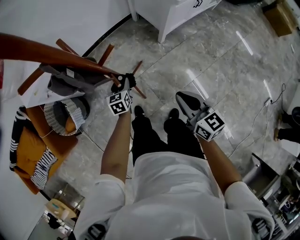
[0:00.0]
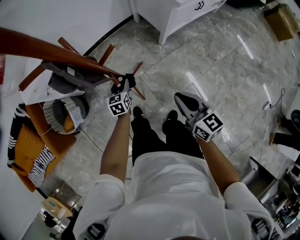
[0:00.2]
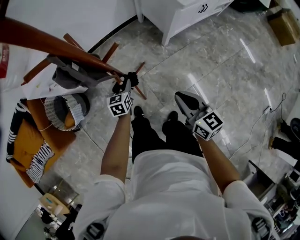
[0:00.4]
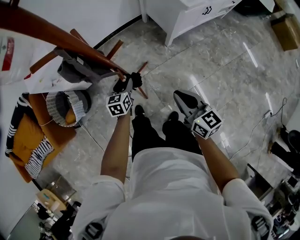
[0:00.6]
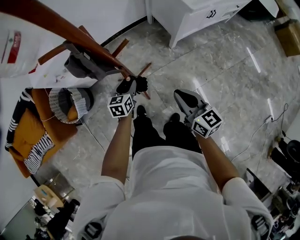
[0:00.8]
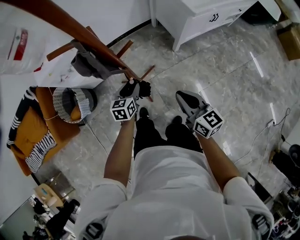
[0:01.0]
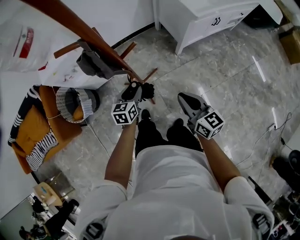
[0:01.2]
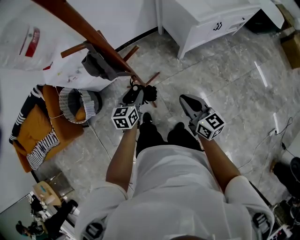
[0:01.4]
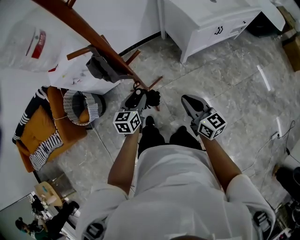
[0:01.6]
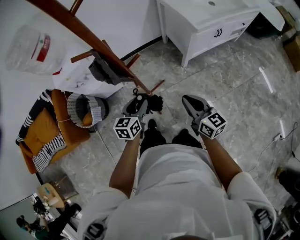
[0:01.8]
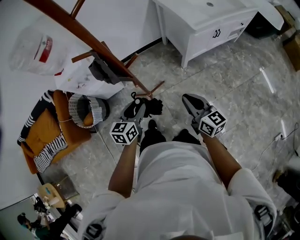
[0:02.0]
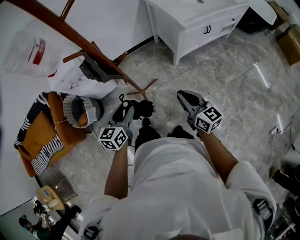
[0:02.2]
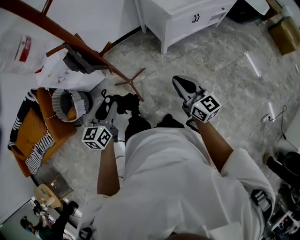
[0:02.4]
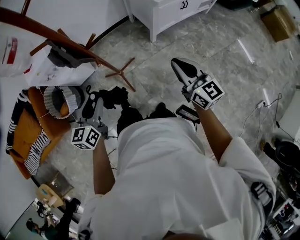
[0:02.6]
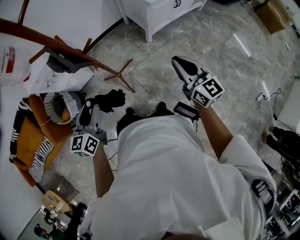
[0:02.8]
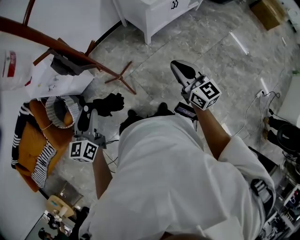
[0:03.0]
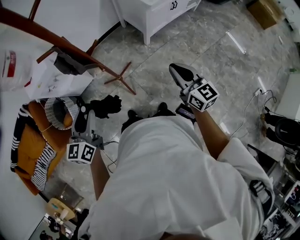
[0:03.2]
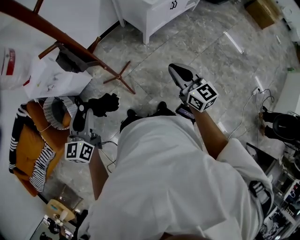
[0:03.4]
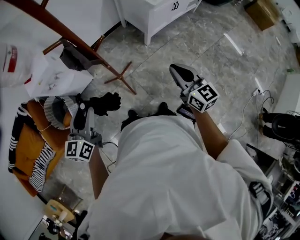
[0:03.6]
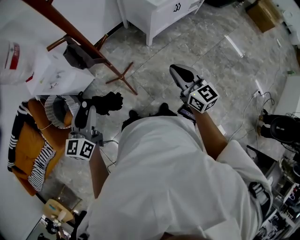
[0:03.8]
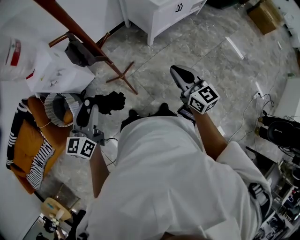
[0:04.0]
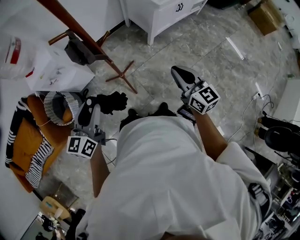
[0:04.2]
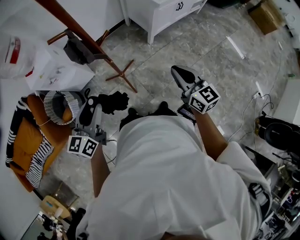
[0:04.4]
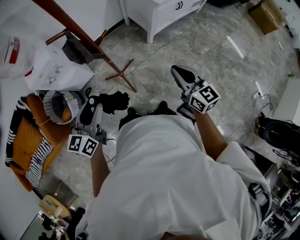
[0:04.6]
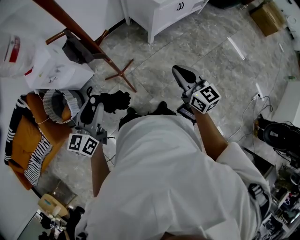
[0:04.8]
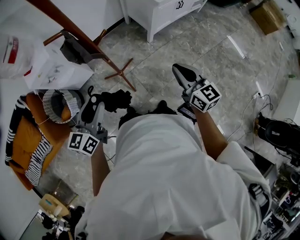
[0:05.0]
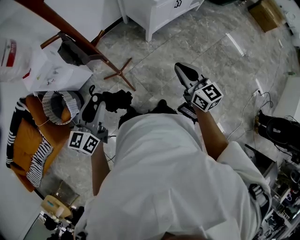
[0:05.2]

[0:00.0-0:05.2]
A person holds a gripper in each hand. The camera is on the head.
0:00.0 to 0:01.8: The right gripper heads upward, covering roughly 5 cm. The left gripper goes about 20 cm upward and backward.
0:01.8 to 0:03.4: The right gripper is displaced upward, to the right and backward by roughly 10 cm. Meanwhile the left gripper travels upward, to the left and backward by approximately 20 cm.
0:03.4 to 0:05.2: There are only small adjustments of the grippers.

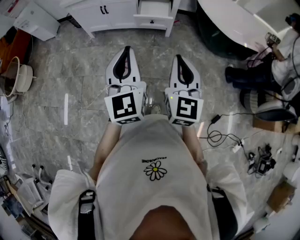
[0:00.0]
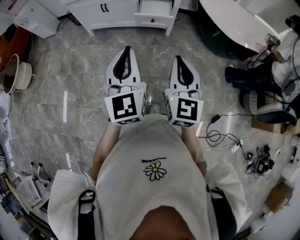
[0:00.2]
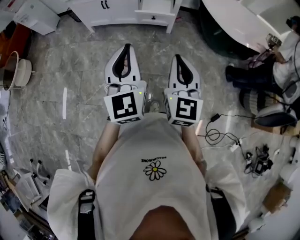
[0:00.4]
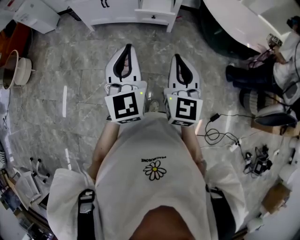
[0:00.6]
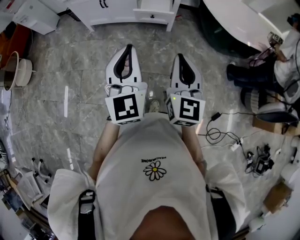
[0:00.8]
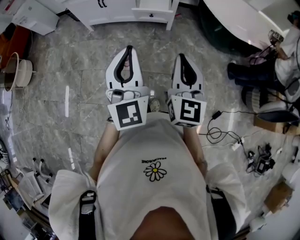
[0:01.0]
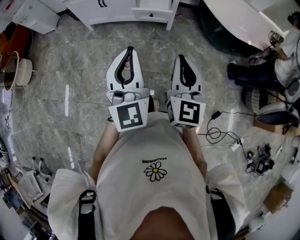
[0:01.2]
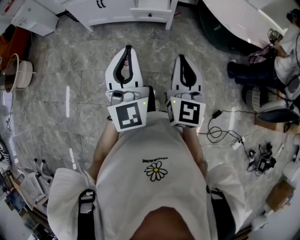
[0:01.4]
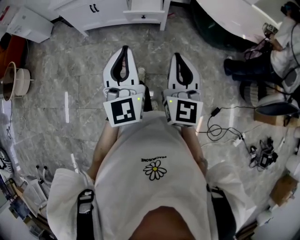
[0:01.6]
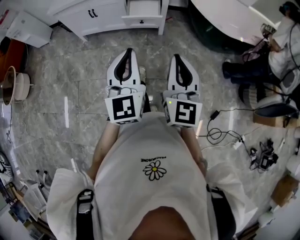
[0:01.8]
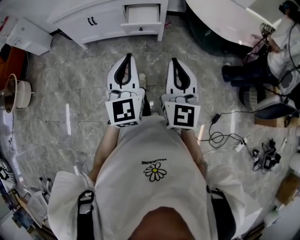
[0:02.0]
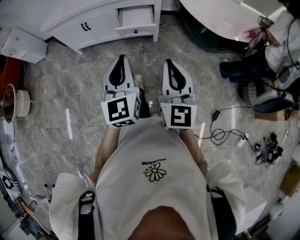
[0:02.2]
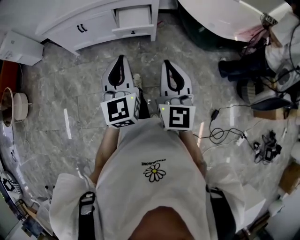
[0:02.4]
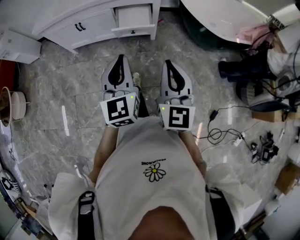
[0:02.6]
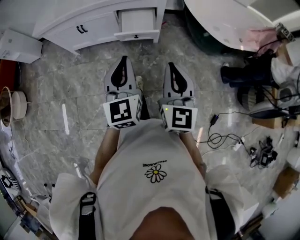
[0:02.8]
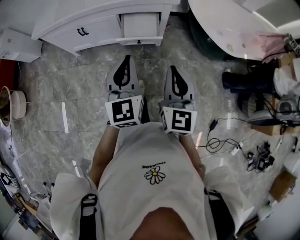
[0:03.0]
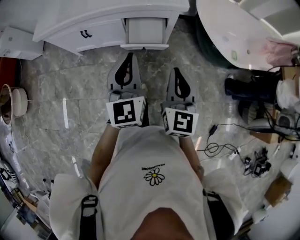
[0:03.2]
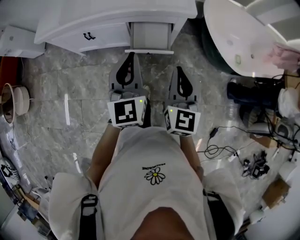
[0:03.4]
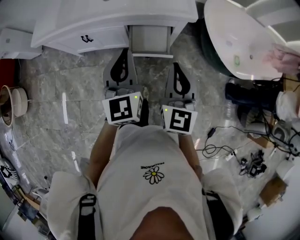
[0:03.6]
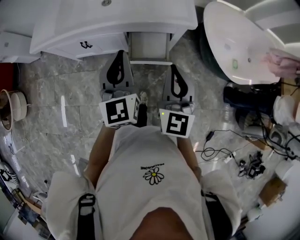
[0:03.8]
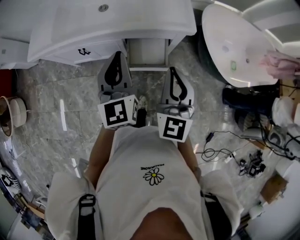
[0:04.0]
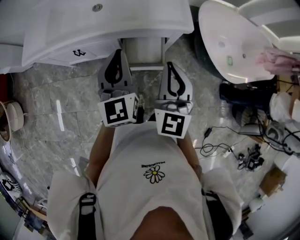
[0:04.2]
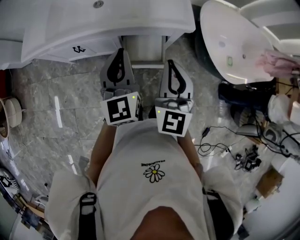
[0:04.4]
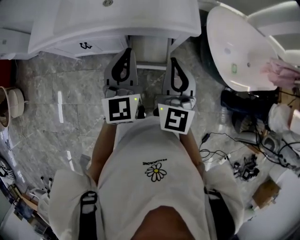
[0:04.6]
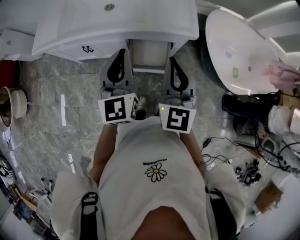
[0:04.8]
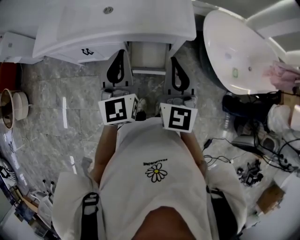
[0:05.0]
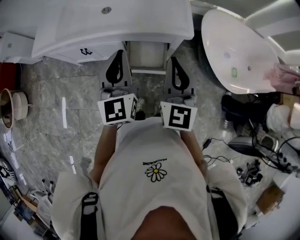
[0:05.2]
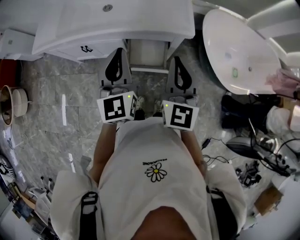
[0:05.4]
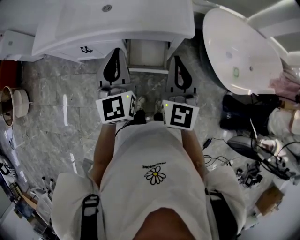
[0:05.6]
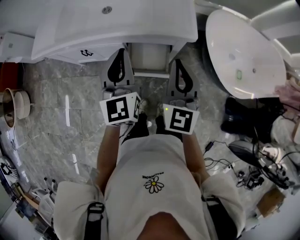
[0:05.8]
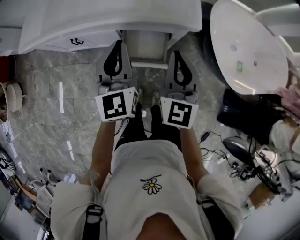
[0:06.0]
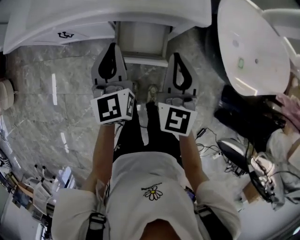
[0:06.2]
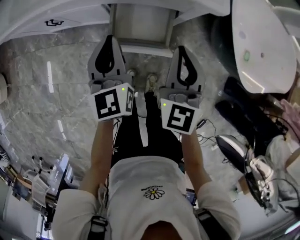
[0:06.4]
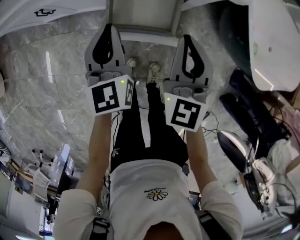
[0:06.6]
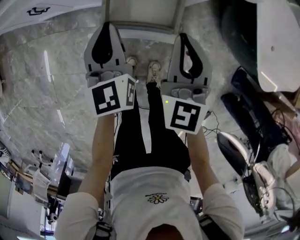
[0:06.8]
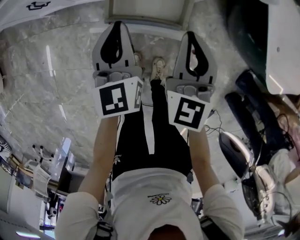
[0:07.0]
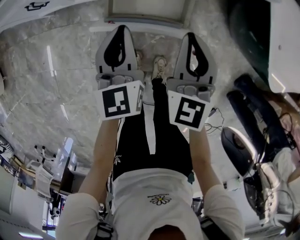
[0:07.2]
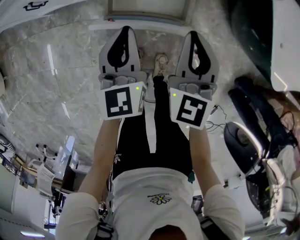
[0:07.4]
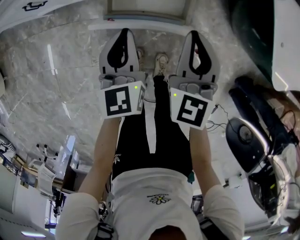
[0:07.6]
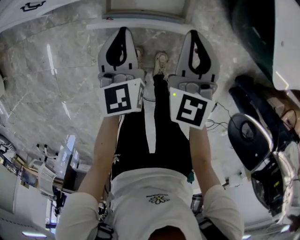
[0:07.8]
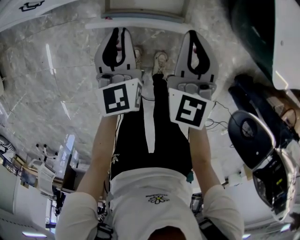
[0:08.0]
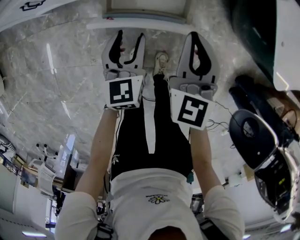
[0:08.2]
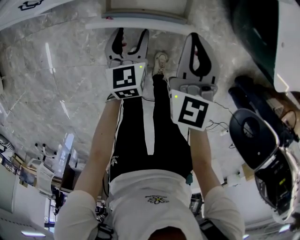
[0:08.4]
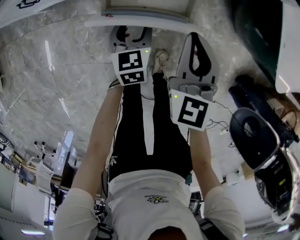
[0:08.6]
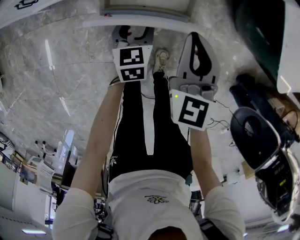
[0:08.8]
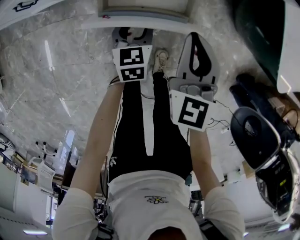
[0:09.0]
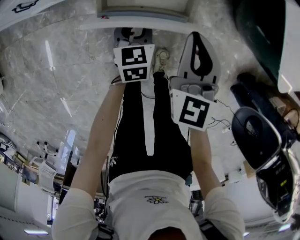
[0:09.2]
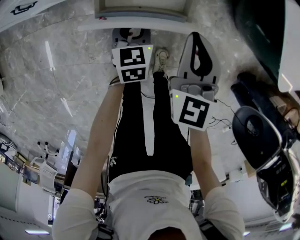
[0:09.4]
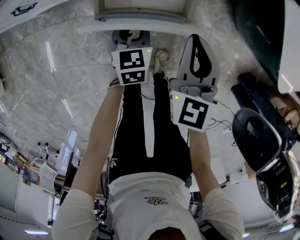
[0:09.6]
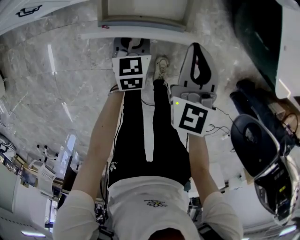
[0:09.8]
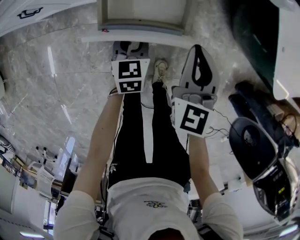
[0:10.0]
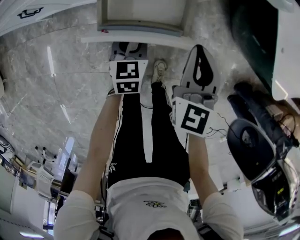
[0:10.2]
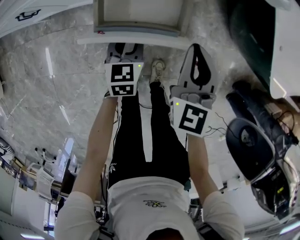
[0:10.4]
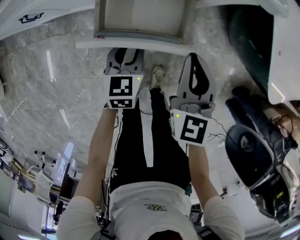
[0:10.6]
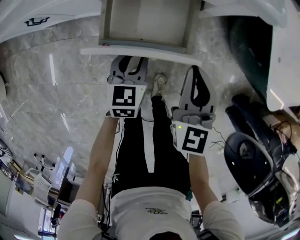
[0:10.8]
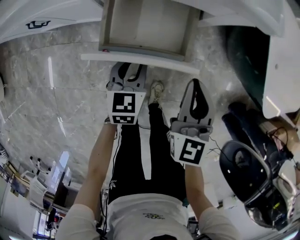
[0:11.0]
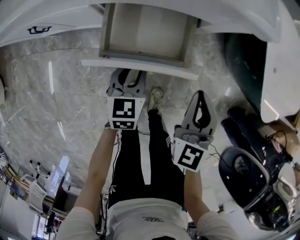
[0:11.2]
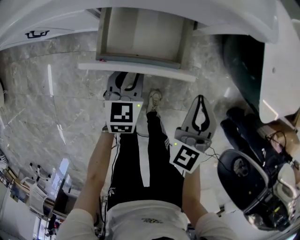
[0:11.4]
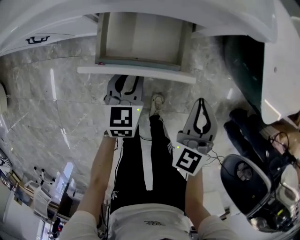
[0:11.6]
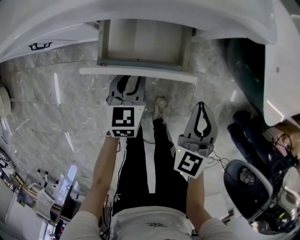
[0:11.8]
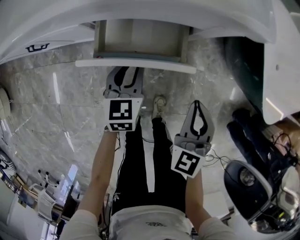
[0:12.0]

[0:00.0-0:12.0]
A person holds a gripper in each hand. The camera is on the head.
0:00.0 to 0:01.6: The left gripper heads to the right, covering roughly 5 cm.
0:01.6 to 0:03.0: Both grippers travel together forward, roughly 20 cm.
0:03.0 to 0:04.4: The grippers both shift forward by approximately 25 cm.
0:04.4 to 0:06.0: The left gripper changes place by about 5 cm, while the right gripper is displaced downward and forward by about 10 cm.
0:06.0 to 0:07.6: Both grippers move downward, roughly 30 cm. The left gripper turns by roughly 20 degrees.
0:07.6 to 0:09.0: The left gripper goes roughly 15 cm downward, and opens its fingers.
0:09.0 to 0:10.4: The left gripper closes its fingers.
0:10.4 to 0:12.0: The left gripper shifts approximately 5 cm forward.

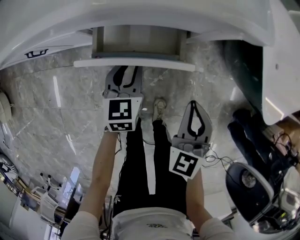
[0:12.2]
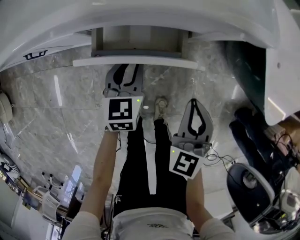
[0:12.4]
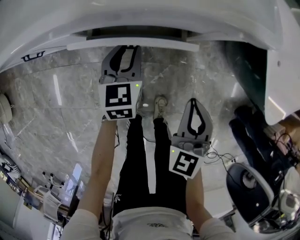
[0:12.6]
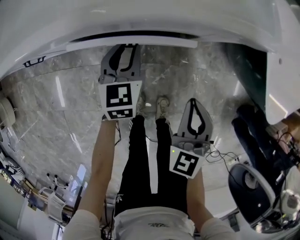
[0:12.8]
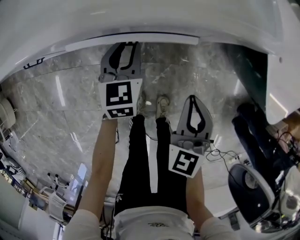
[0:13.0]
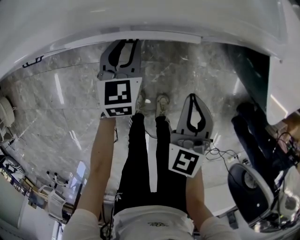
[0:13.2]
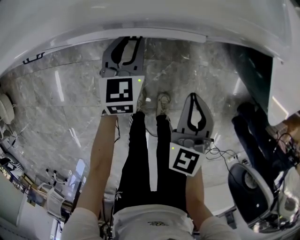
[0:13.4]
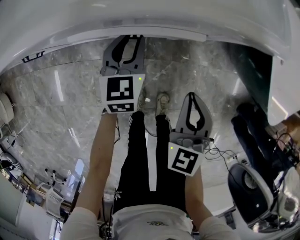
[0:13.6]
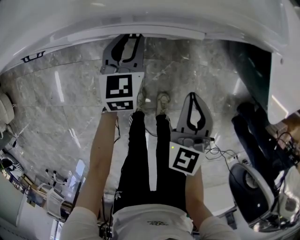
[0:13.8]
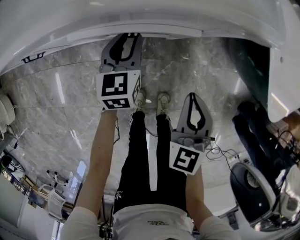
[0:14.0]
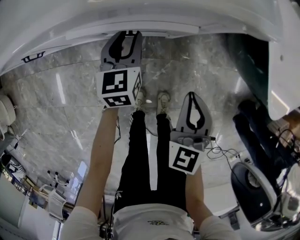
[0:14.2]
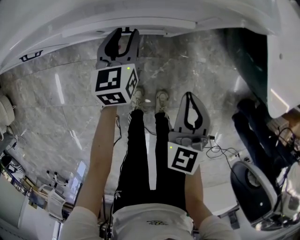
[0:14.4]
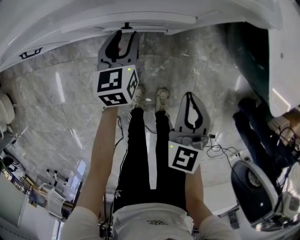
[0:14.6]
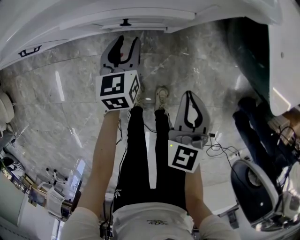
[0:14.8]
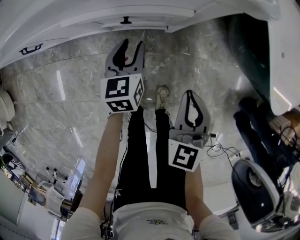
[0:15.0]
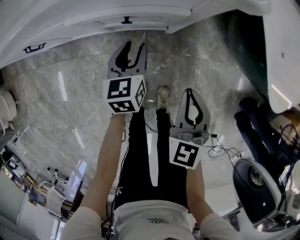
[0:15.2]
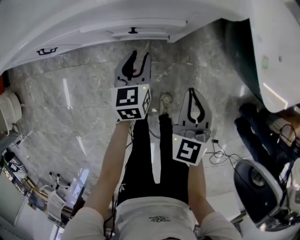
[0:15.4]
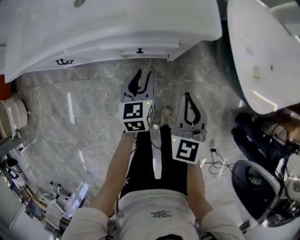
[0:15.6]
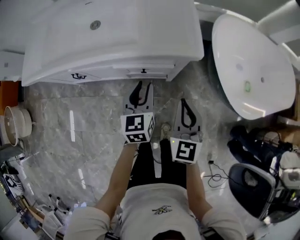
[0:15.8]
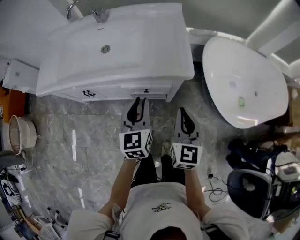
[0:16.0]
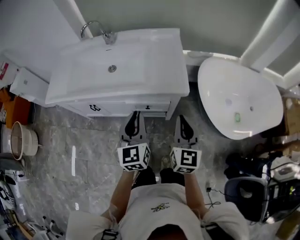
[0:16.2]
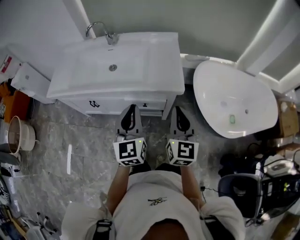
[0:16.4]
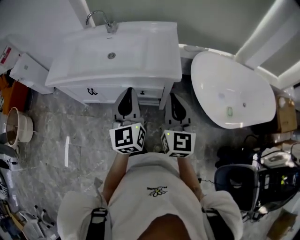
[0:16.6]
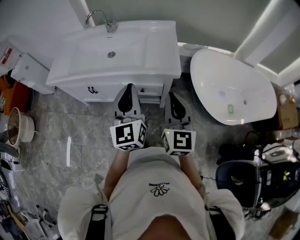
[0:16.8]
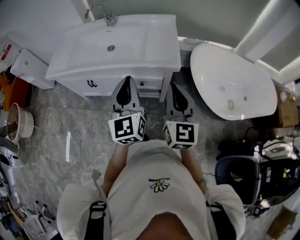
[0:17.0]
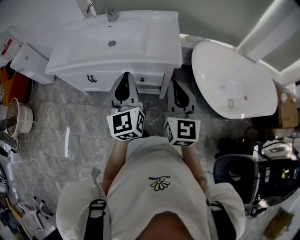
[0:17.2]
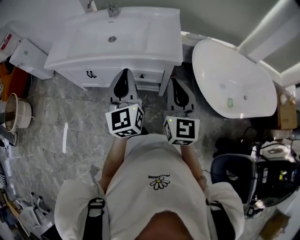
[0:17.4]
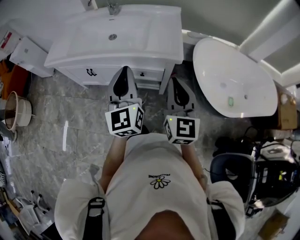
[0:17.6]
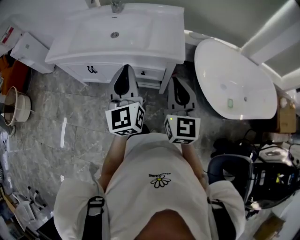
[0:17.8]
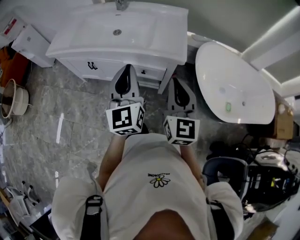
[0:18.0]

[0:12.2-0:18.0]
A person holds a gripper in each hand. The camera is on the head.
0:12.2 to 0:13.6: The left gripper goes some 10 cm forward.
0:13.6 to 0:15.0: The left gripper goes approximately 5 cm backward, while the right gripper moves about 5 cm.
0:15.0 to 0:16.6: The grippers both shift upward by approximately 50 cm. The right gripper points its fingers about 30 degrees further upward. The left gripper tilts its fingers about 40 degrees upward, and closes its fingers.
0:16.6 to 0:18.0: The grippers move only a little.

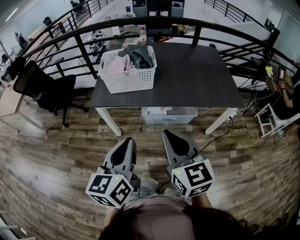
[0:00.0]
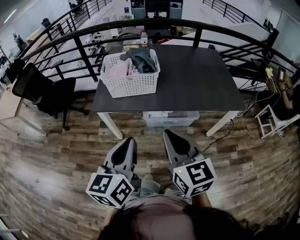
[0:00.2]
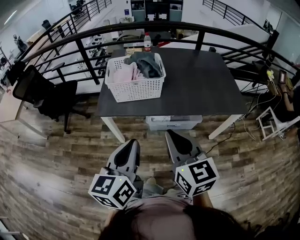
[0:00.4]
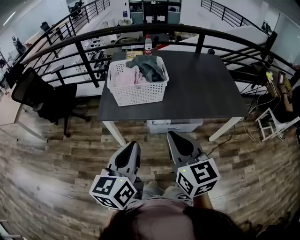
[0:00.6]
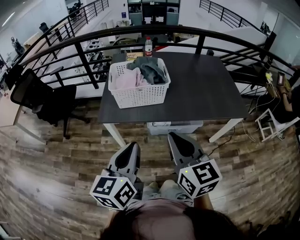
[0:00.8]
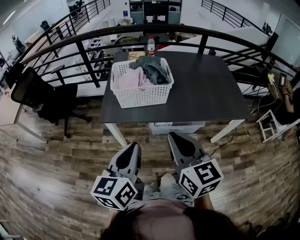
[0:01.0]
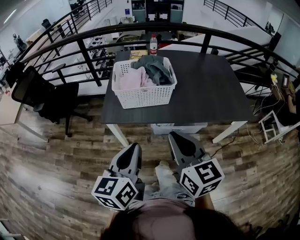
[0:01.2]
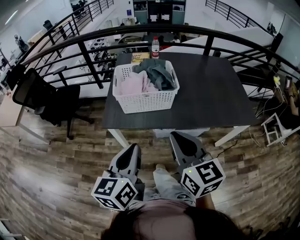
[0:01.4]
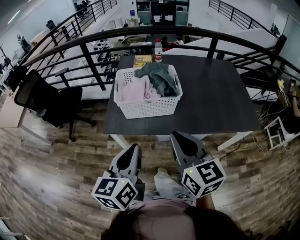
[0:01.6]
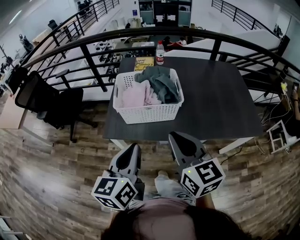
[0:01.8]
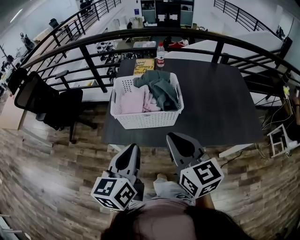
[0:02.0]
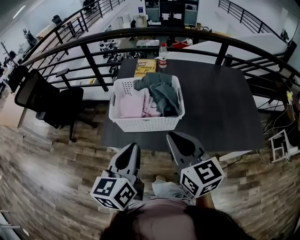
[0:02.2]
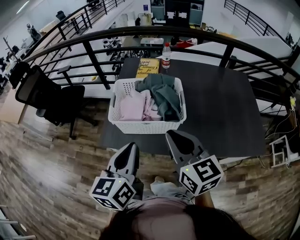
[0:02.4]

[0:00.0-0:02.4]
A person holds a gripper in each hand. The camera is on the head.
0:00.0 to 0:01.2: Both grippers move forward and to the left, roughly 15 cm.
0:01.2 to 0:02.4: Both grippers travel together forward, approximately 20 cm.
